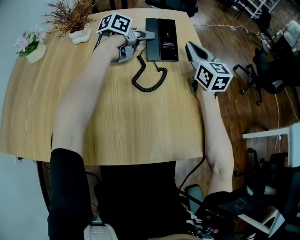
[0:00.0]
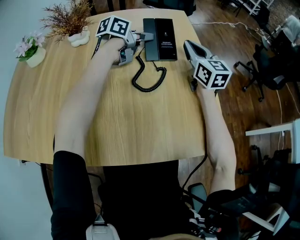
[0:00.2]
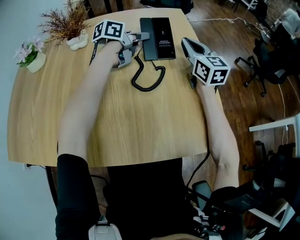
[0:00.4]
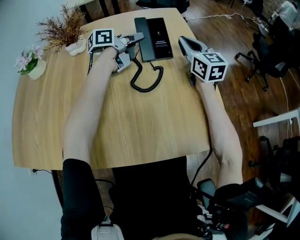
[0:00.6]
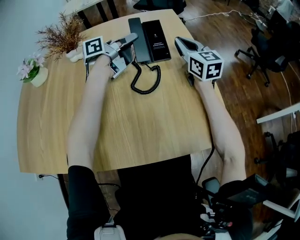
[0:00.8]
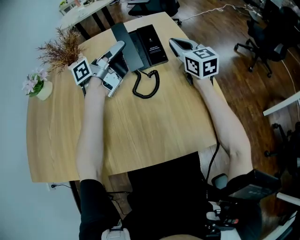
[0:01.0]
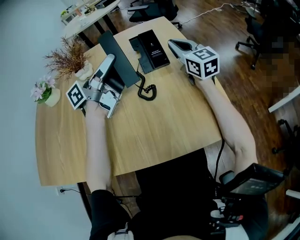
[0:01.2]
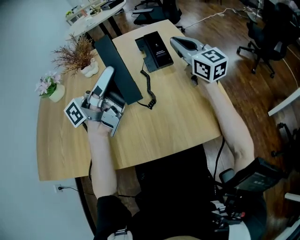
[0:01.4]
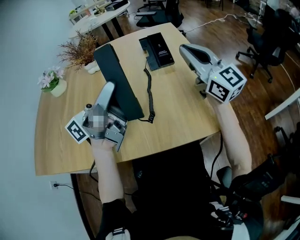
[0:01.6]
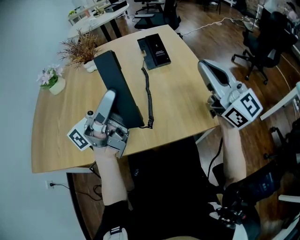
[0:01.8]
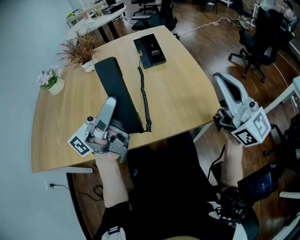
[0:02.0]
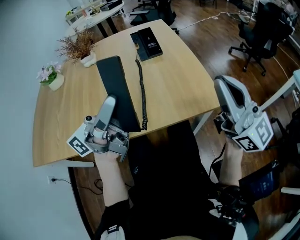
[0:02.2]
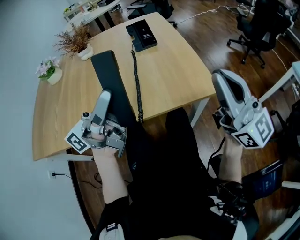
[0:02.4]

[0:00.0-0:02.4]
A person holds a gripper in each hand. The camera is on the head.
0:00.0 to 0:01.2: The left gripper travels upward and backward by roughly 20 cm, tilts its fingers some 50 degrees upward, and closes up.
0:01.2 to 0:02.4: The two grippers go some 35 cm backward. The right gripper turns by approximately 30 degrees.

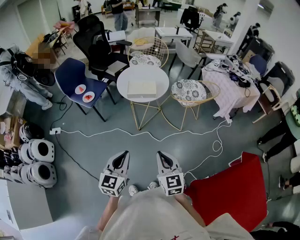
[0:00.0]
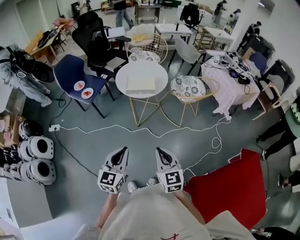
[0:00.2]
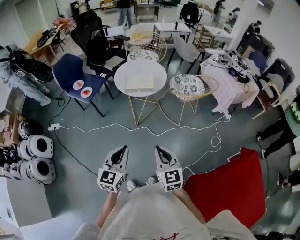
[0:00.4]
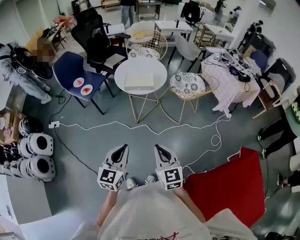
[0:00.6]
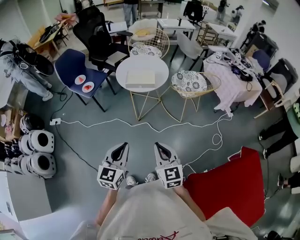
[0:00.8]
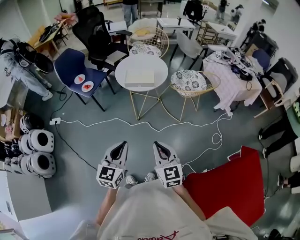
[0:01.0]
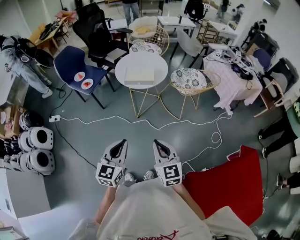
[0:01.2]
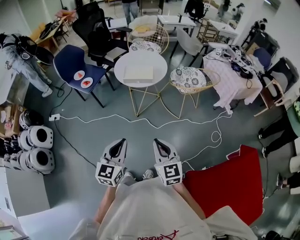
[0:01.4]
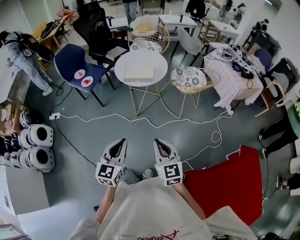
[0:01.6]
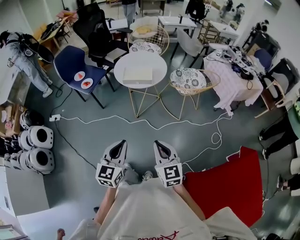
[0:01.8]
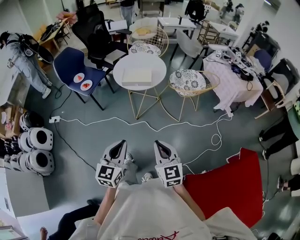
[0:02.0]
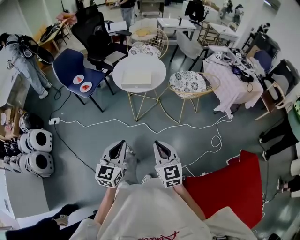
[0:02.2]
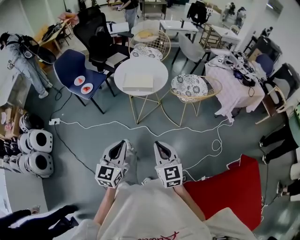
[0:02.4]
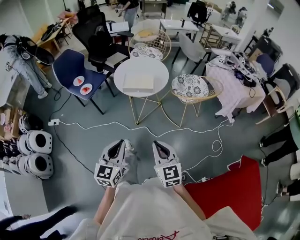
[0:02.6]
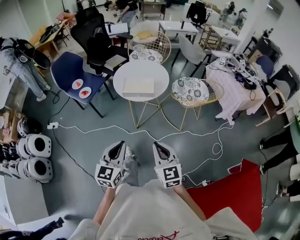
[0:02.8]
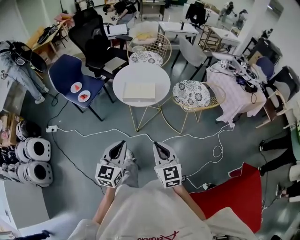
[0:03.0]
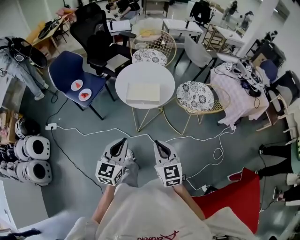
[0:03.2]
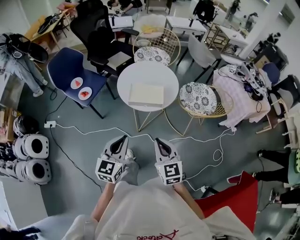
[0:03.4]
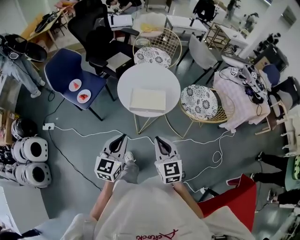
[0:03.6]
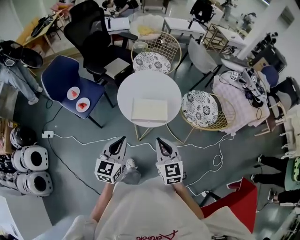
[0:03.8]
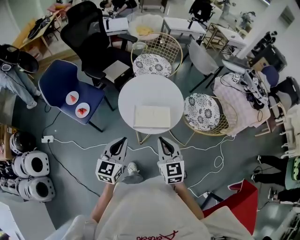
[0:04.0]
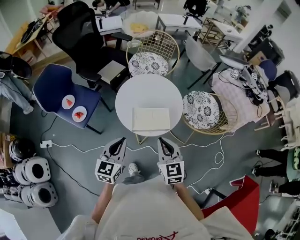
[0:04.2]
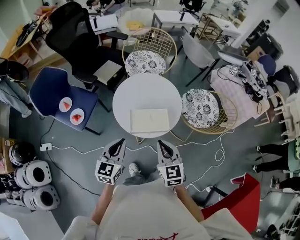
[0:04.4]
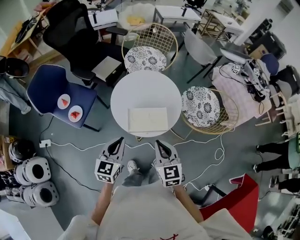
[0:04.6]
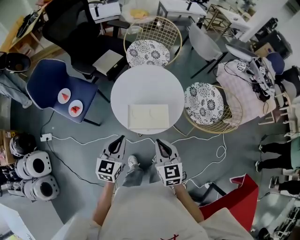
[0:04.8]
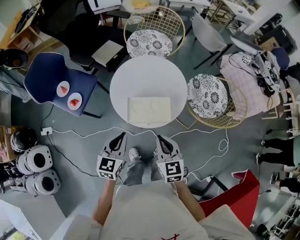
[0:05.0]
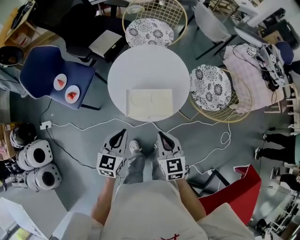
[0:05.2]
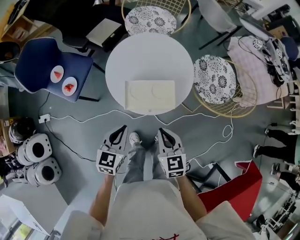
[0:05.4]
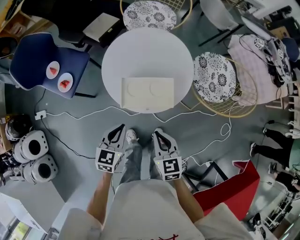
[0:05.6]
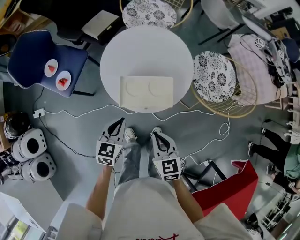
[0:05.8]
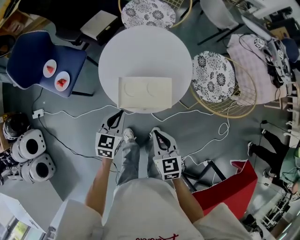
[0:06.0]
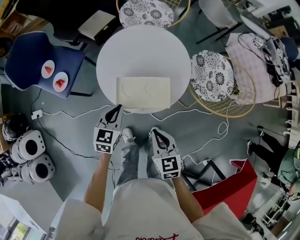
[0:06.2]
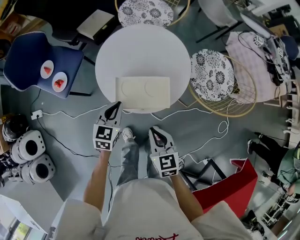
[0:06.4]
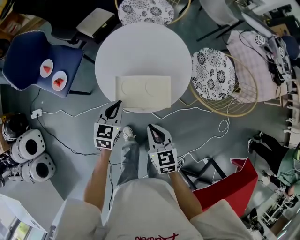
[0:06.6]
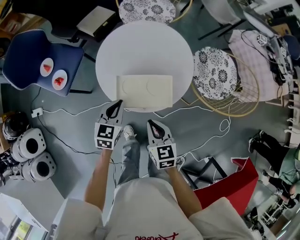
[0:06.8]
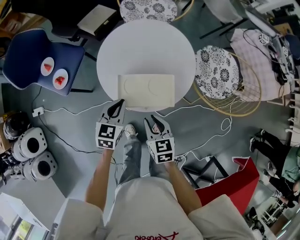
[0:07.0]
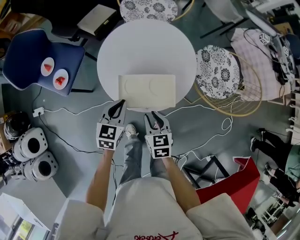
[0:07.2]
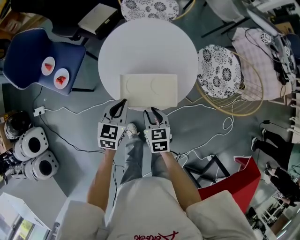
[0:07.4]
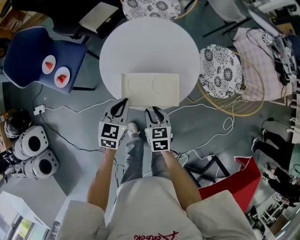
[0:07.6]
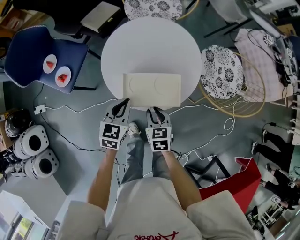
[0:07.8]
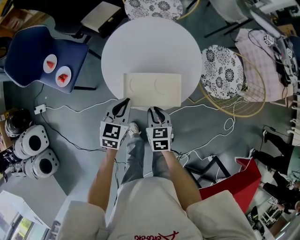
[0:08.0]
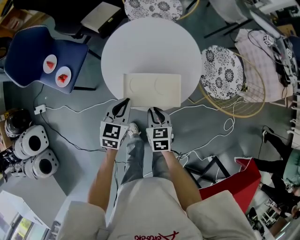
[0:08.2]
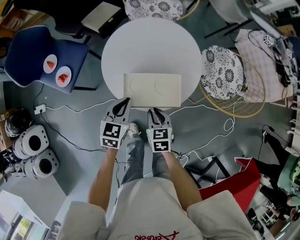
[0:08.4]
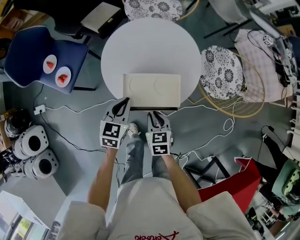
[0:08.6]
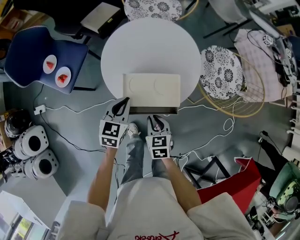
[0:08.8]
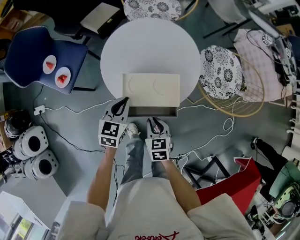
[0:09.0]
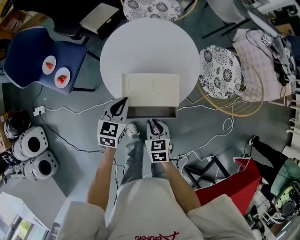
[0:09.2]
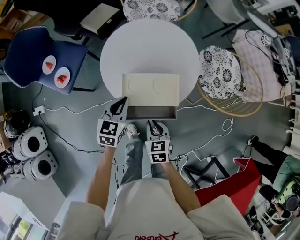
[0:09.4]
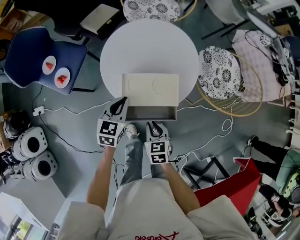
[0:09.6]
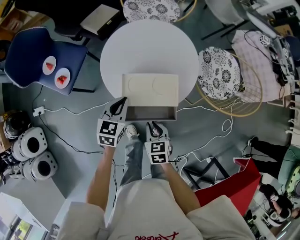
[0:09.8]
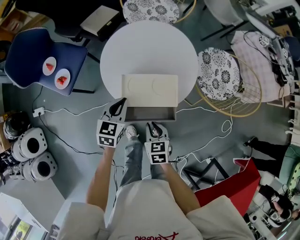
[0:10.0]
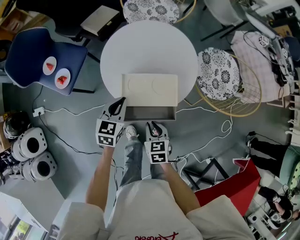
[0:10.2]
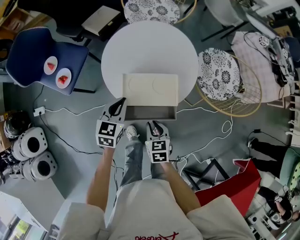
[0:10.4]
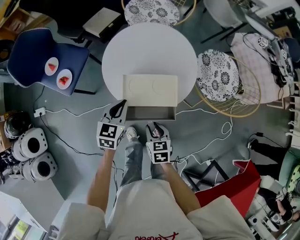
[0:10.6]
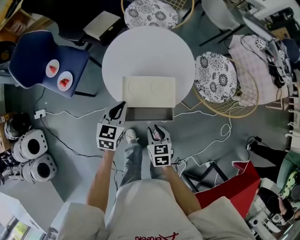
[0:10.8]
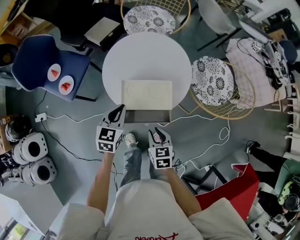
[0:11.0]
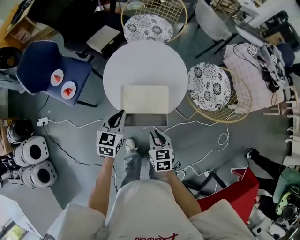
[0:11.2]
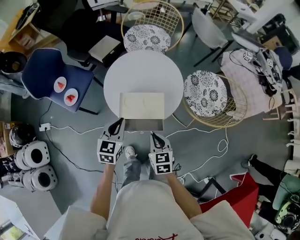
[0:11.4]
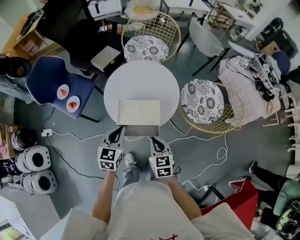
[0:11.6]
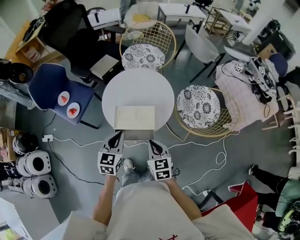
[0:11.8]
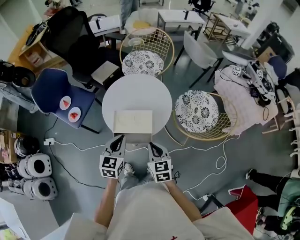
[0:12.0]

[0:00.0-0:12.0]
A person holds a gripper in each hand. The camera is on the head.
0:00.0 to 0:01.6: The grippers stay close to where they were, moving slightly.
0:01.6 to 0:03.0: Both grippers move forward, about 15 cm.
0:03.0 to 0:04.4: The grippers both shift forward by about 30 cm.
0:04.4 to 0:06.0: The grippers both shift downward by some 15 cm.
0:06.0 to 0:07.6: The right gripper travels downward and forward by approximately 15 cm, and opens its fingers.
0:07.6 to 0:09.0: The grippers move only a little.
0:09.0 to 0:10.4: There are only small adjustments of the grippers.
0:10.4 to 0:12.0: The left gripper heads upward, to the right and backward, covering some 20 cm. Meanwhile the right gripper moves upward and to the right, approximately 20 cm, and rotates some 20 degrees.

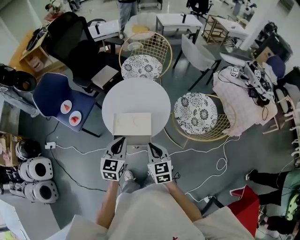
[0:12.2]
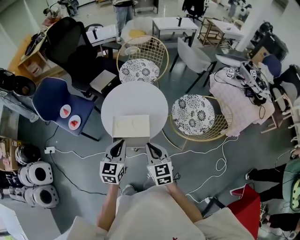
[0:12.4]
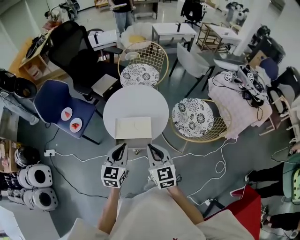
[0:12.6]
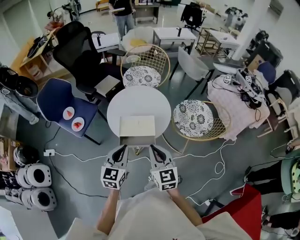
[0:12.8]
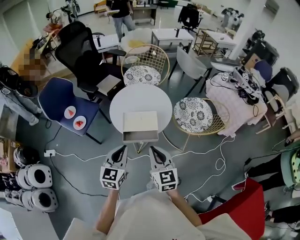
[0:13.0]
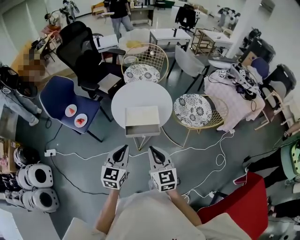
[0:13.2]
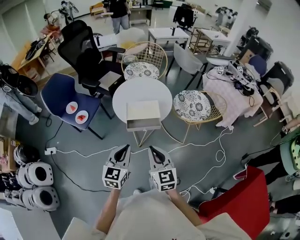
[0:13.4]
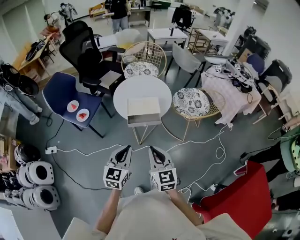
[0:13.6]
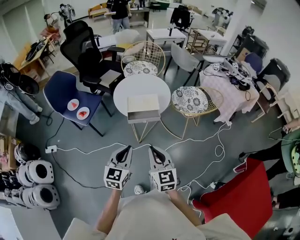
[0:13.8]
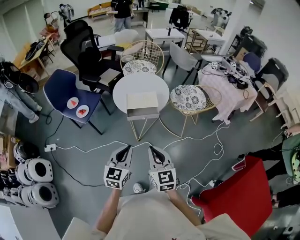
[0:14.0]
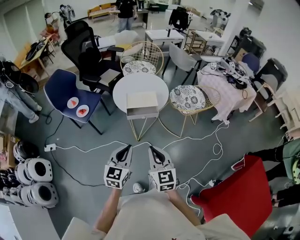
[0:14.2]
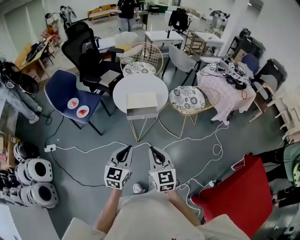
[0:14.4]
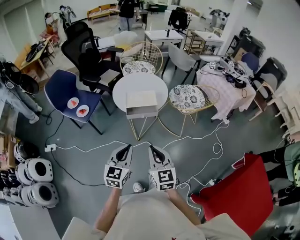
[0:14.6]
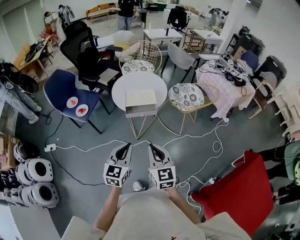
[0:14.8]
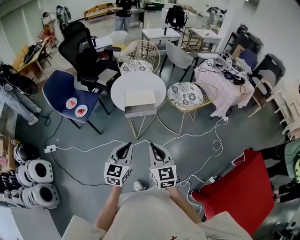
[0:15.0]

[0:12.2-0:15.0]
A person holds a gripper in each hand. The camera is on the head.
0:12.2 to 0:13.6: The right gripper is displaced backward, upward and to the left by about 25 cm, while the left gripper is displaced backward by approximately 25 cm.
0:13.6 to 0:15.0: Both grippers travel together backward, roughly 5 cm.

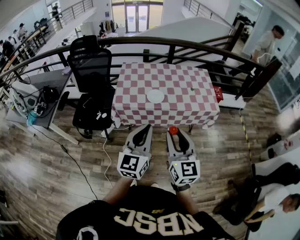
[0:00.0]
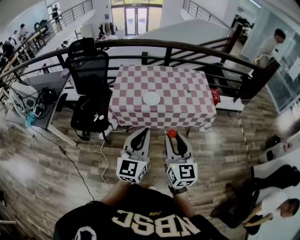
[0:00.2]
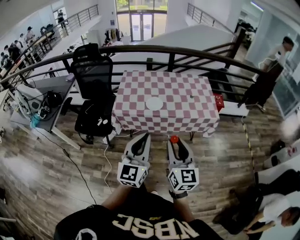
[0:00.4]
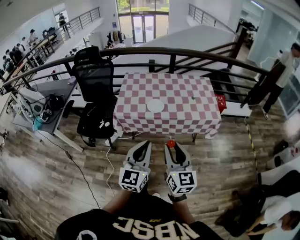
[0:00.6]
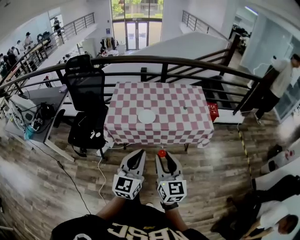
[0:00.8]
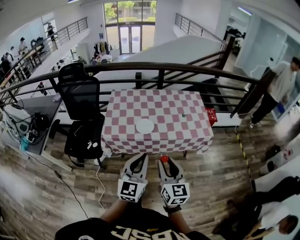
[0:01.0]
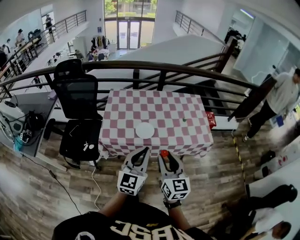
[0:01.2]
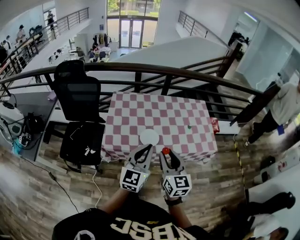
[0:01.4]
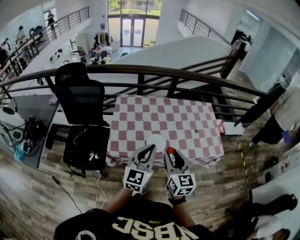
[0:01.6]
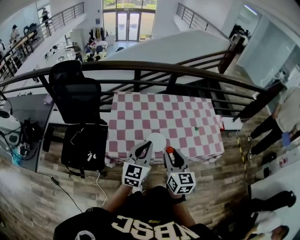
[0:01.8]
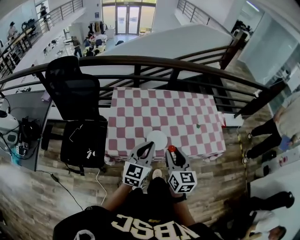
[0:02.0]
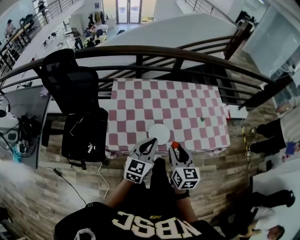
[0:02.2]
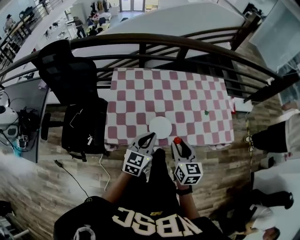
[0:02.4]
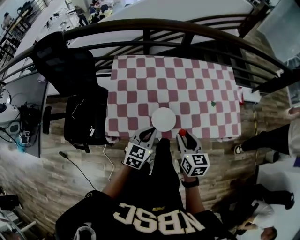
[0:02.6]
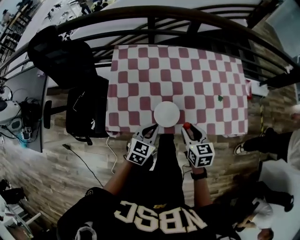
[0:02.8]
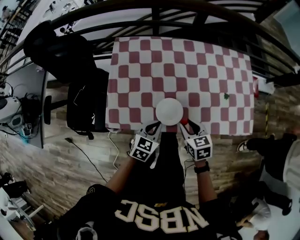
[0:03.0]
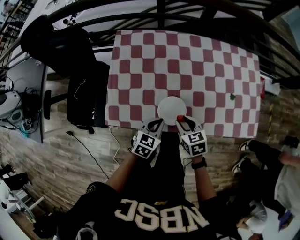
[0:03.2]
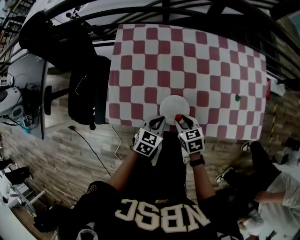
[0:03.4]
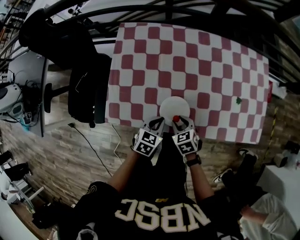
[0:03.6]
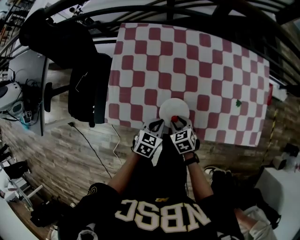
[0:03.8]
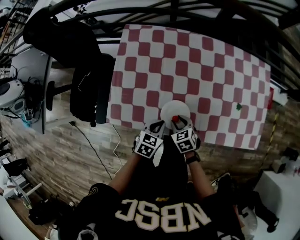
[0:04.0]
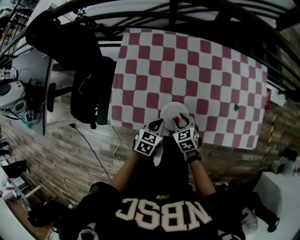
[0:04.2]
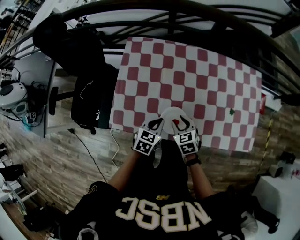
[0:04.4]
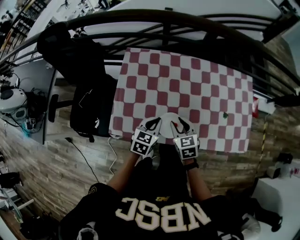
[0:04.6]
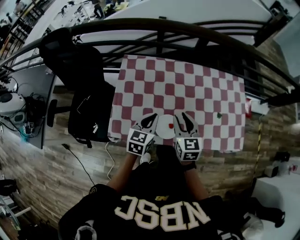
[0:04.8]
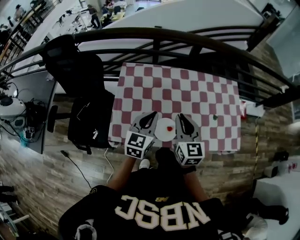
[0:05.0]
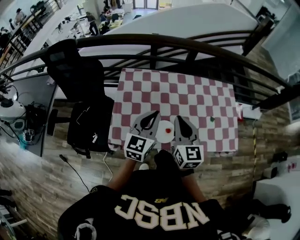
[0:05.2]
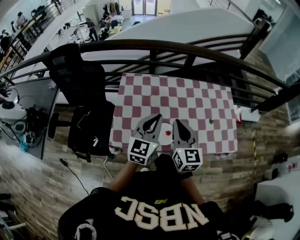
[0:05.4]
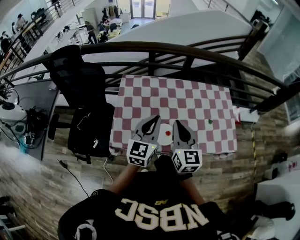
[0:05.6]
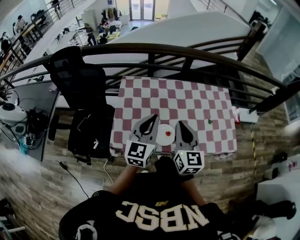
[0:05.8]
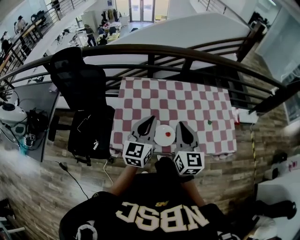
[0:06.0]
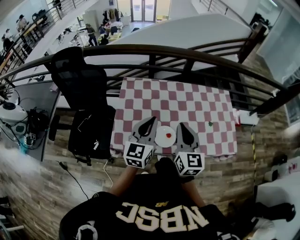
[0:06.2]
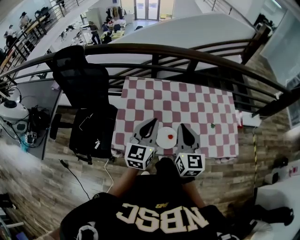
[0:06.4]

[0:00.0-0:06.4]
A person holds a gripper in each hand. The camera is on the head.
0:00.0 to 0:01.6: The grippers both shift forward by roughly 30 cm.
0:01.6 to 0:03.2: The grippers both shift downward and forward by roughly 35 cm. The left gripper tilts its fingers approximately 40 degrees downward, while the right gripper tips its fingers downward by approximately 40 degrees.
0:03.2 to 0:04.8: Both grippers travel together upward and forward, about 15 cm. The right gripper rotates approximately 30 degrees.
0:04.8 to 0:06.4: The right gripper is displaced upward and backward by roughly 15 cm, swivels about 20 degrees, and closes, while the left gripper is displaced upward by some 15 cm, and changes its angle by roughly 20 degrees.
